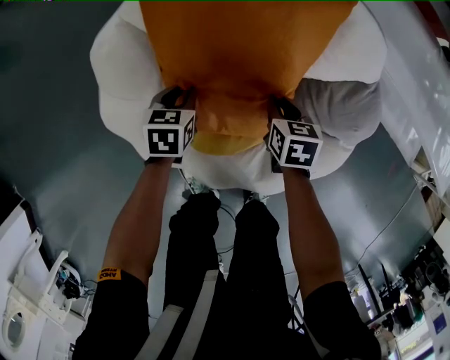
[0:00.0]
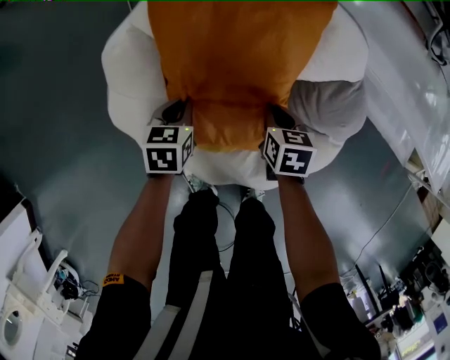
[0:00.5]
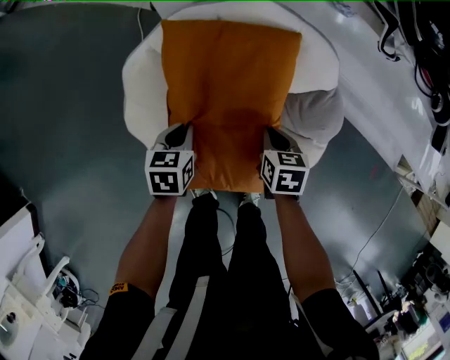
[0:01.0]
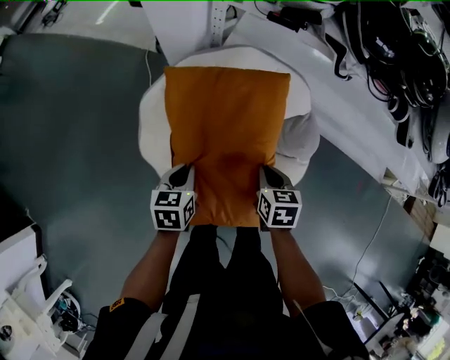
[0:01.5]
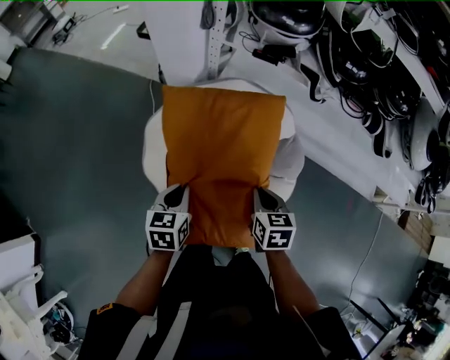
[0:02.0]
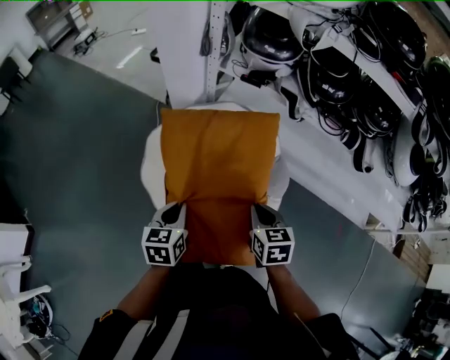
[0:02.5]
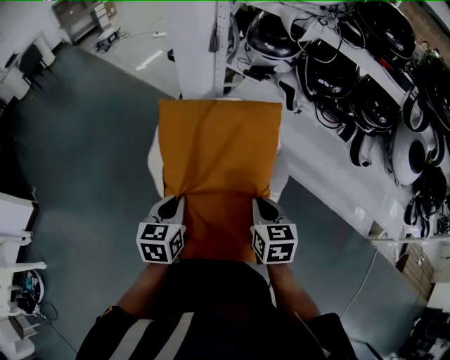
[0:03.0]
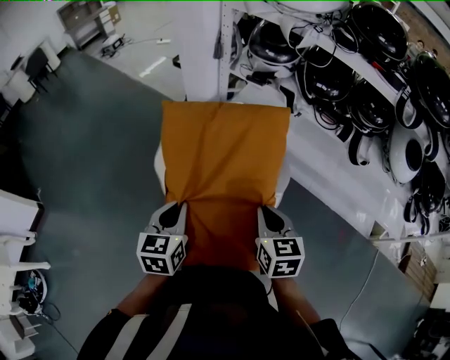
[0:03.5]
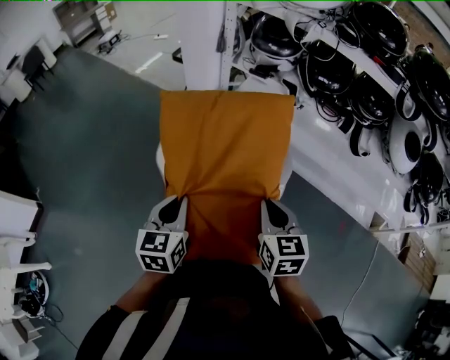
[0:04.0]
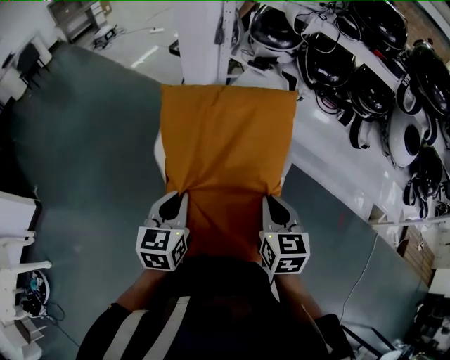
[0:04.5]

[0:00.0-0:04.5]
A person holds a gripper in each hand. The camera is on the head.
0.0 to 2.0 s: The grippers both shift upward by some 40 cm.
2.0 to 4.5 s: Both grippers travel together backward and upward, roughly 30 cm. The right gripper changes its angle by some 20 degrees.

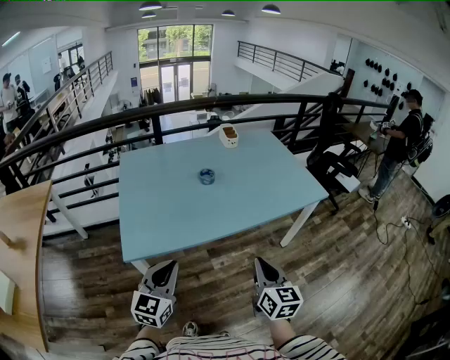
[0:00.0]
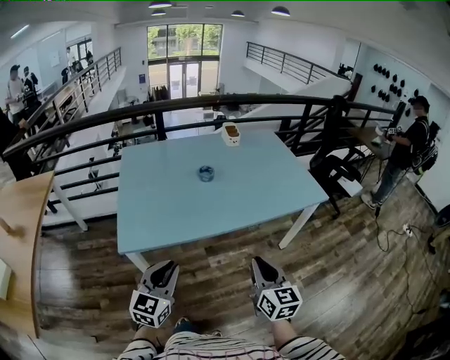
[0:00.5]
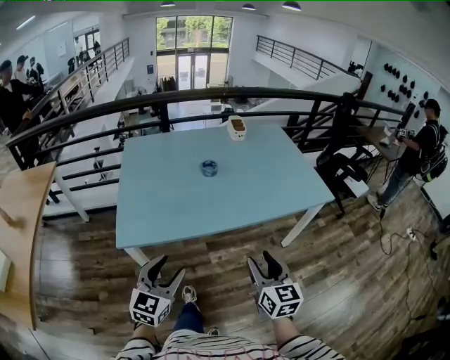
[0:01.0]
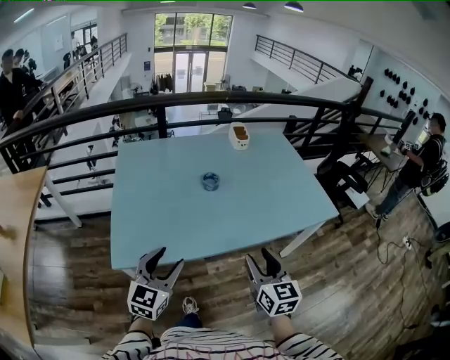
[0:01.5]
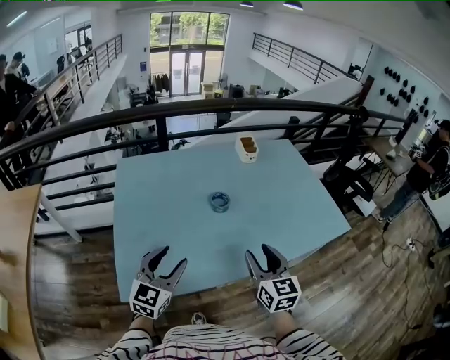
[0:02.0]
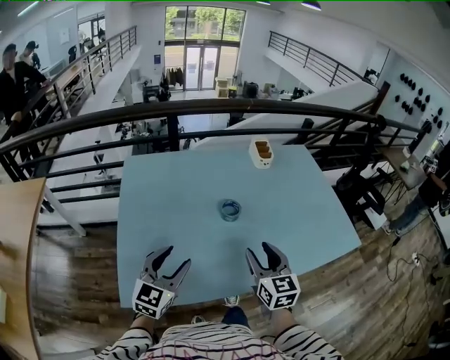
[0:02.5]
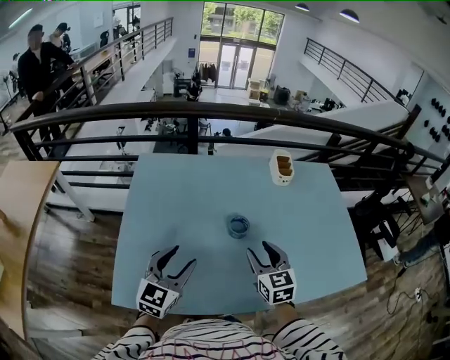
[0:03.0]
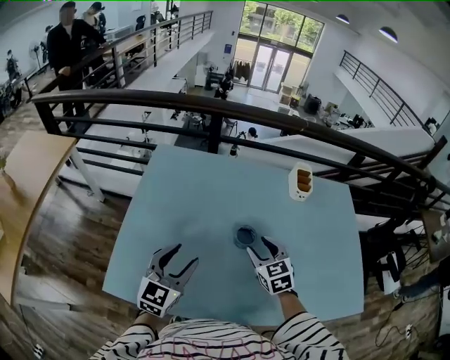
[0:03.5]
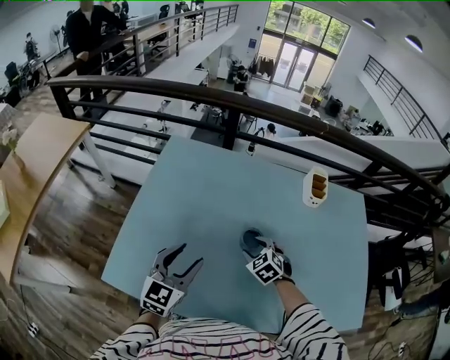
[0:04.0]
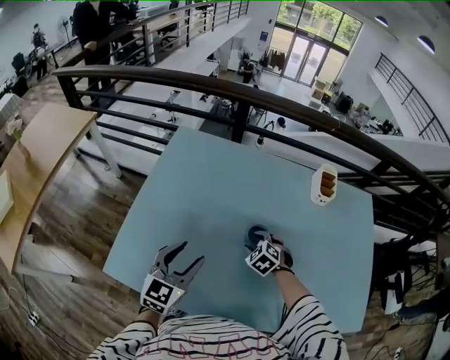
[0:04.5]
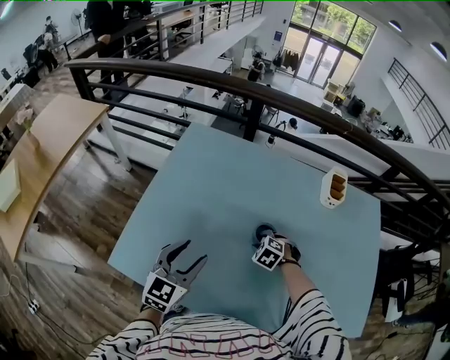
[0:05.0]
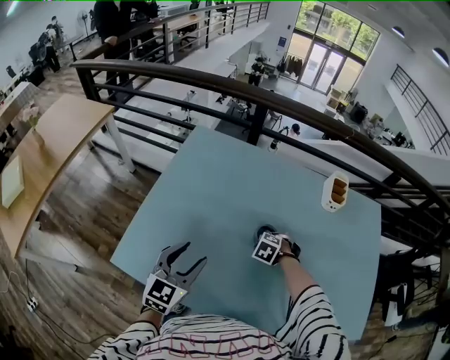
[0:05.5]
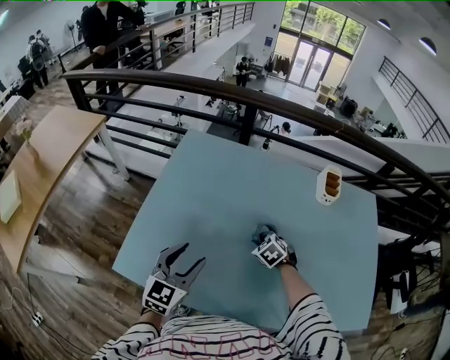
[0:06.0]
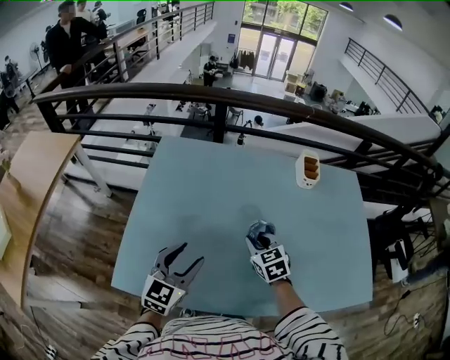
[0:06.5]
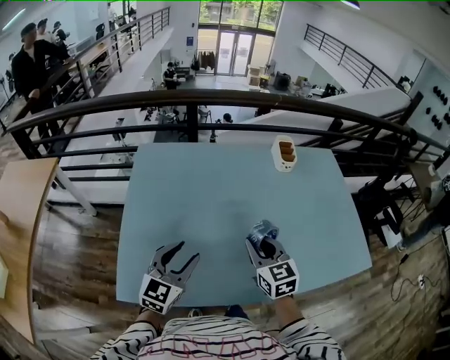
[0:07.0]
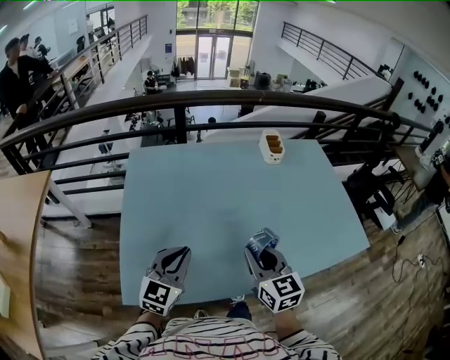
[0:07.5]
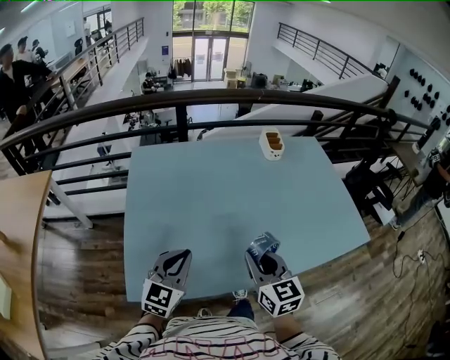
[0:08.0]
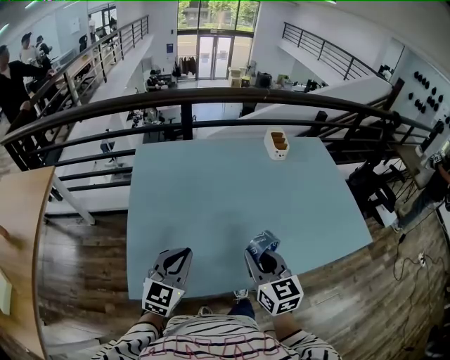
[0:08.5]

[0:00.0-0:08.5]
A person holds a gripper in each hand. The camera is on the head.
0.0 to 2.0 s: The two grippers go roughly 25 cm forward. The left gripper opens its fingers. Meanwhile the right gripper opens up.
2.0 to 4.0 s: The right gripper changes place by approximately 35 cm, and angles its fingers downward, by approximately 40 degrees, while the left gripper ends up about 15 cm from where it was, and swivels about 20 degrees.
4.0 to 6.5 s: The right gripper goes about 5 cm upward, swivels some 30 degrees, and closes up.
6.5 to 8.5 s: The left gripper moves backward, some 10 cm, and closes. The right gripper travels backward and upward by some 20 cm, and rotates about 30 degrees.

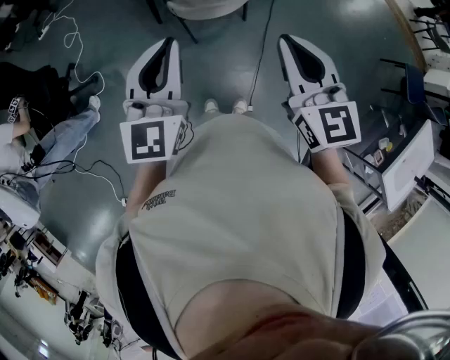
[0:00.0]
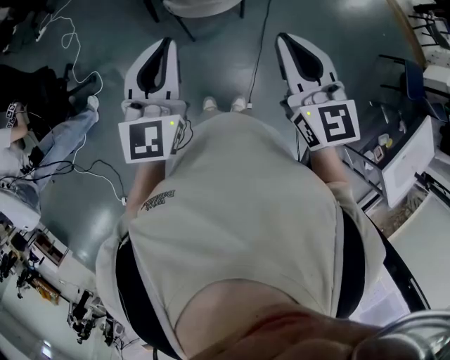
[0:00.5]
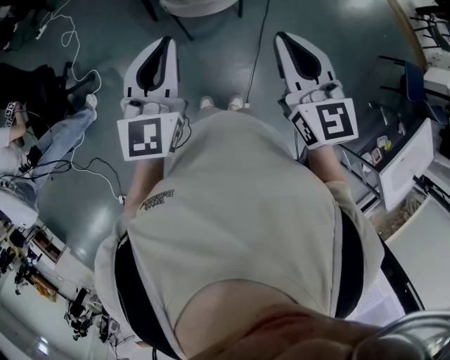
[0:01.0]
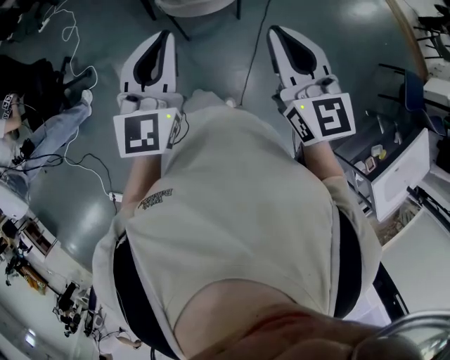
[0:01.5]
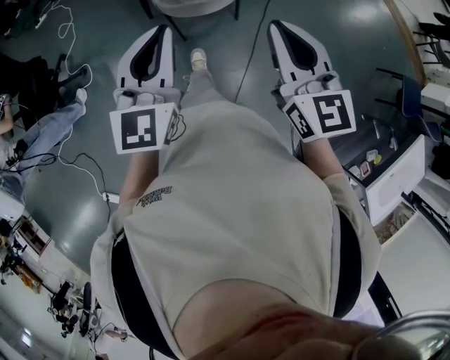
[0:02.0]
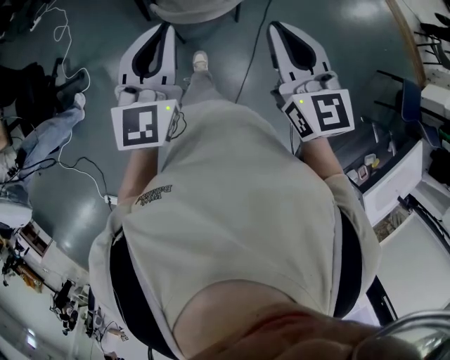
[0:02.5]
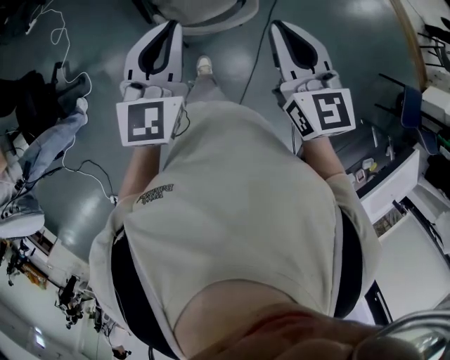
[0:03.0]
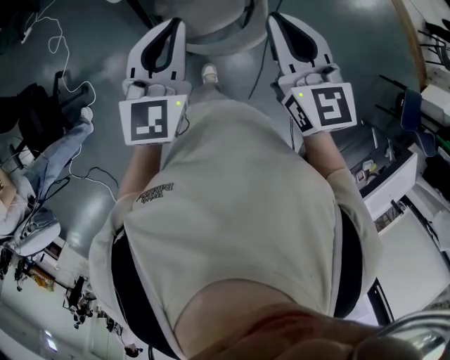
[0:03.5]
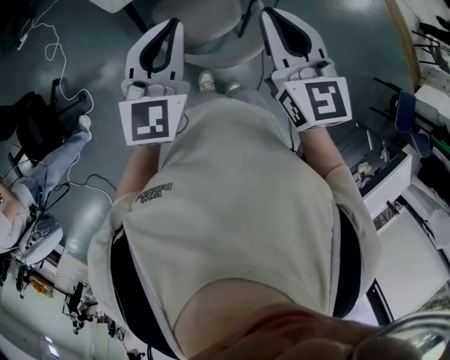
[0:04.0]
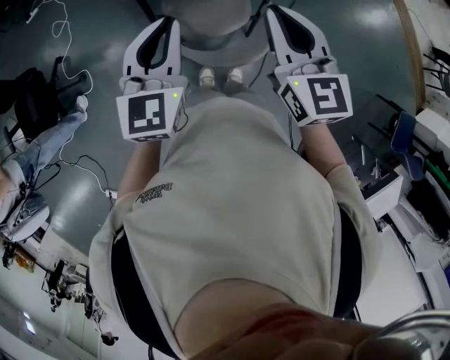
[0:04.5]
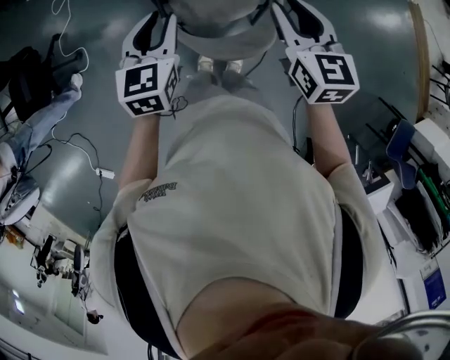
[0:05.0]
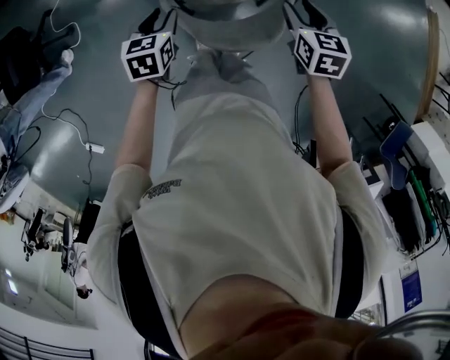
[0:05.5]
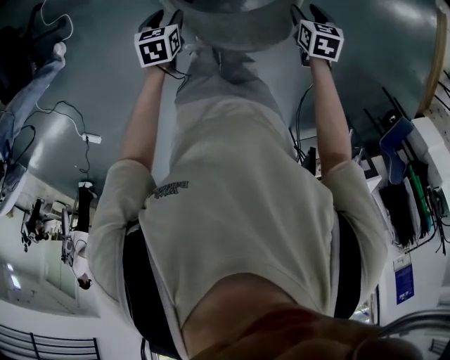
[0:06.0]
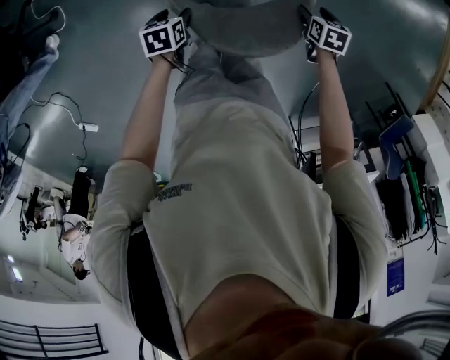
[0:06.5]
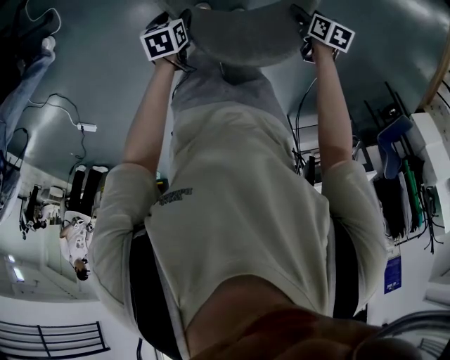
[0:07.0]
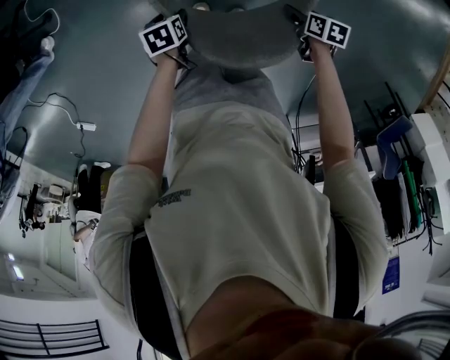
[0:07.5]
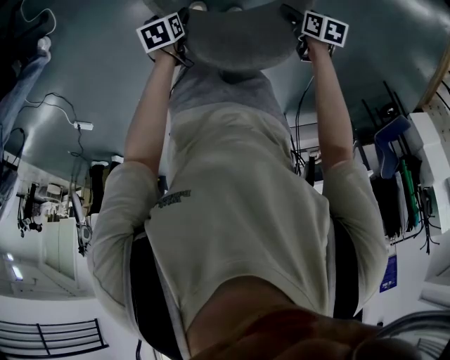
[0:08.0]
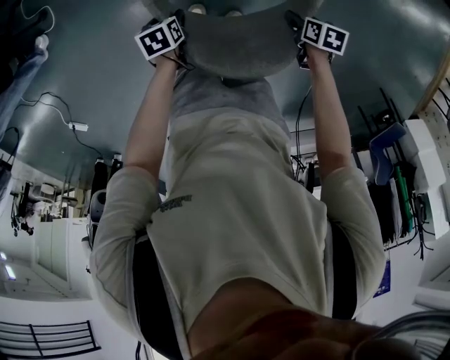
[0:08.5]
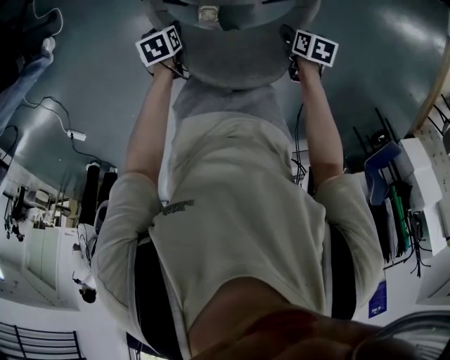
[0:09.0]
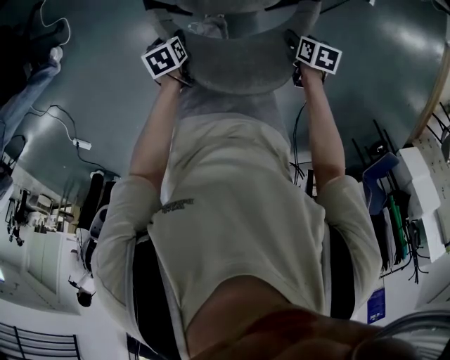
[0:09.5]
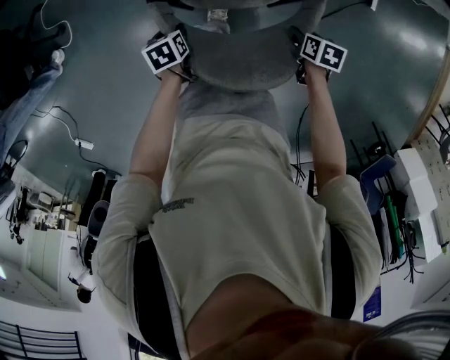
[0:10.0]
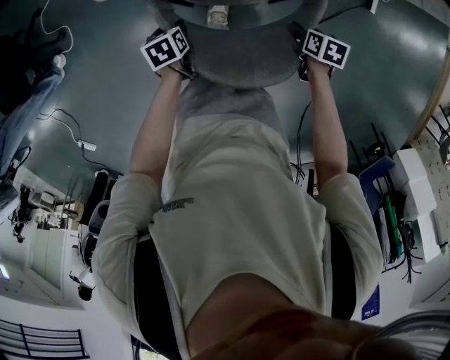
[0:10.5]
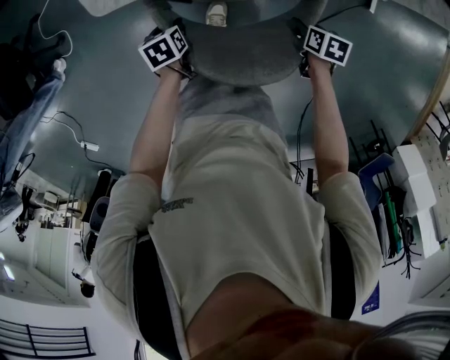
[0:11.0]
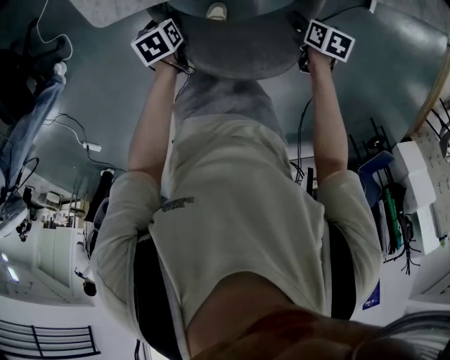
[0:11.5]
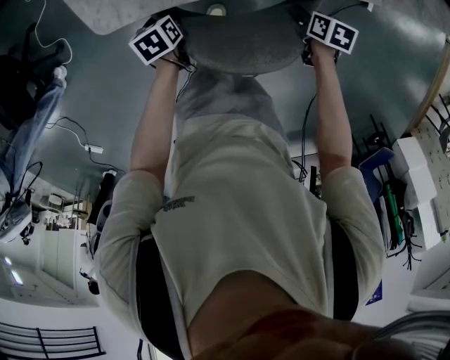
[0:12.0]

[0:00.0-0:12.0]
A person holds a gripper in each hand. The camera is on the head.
0.0 to 2.0 s: Both grippers move to the right, about 10 cm.
2.0 to 4.0 s: The grippers both shift forward by about 35 cm.
4.0 to 6.0 s: The grippers both shift downward by some 40 cm. The right gripper angles its fingers downward, by about 50 degrees, and opens. Meanwhile the left gripper points its fingers approximately 50 degrees further downward, and opens its fingers.
6.0 to 8.0 s: Both grippers move downward, approximately 15 cm. The right gripper turns by some 30 degrees. Meanwhile the left gripper swivels roughly 20 degrees, and opens.
8.0 to 10.0 s: The left gripper changes place by approximately 15 cm, and closes up. The right gripper shifts by some 15 cm.
10.0 to 12.0 s: Both grippers move forward, about 15 cm.

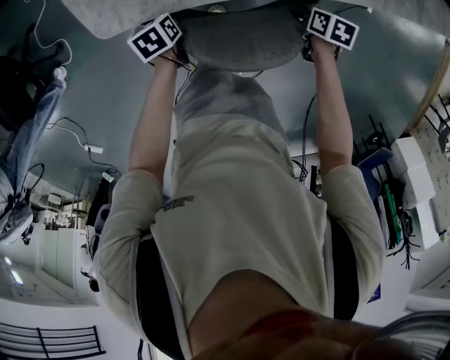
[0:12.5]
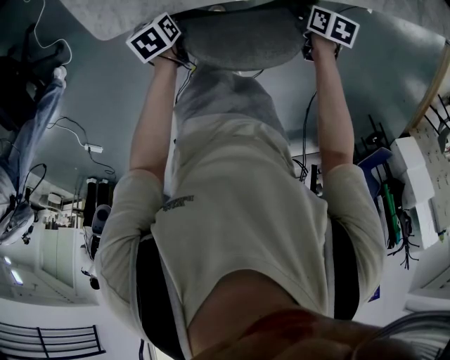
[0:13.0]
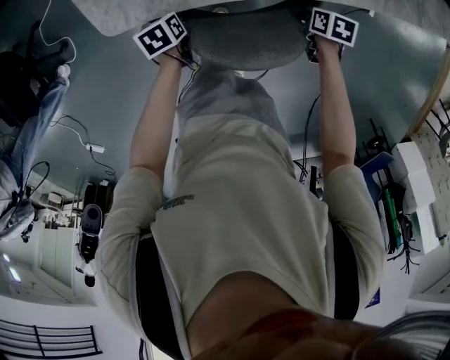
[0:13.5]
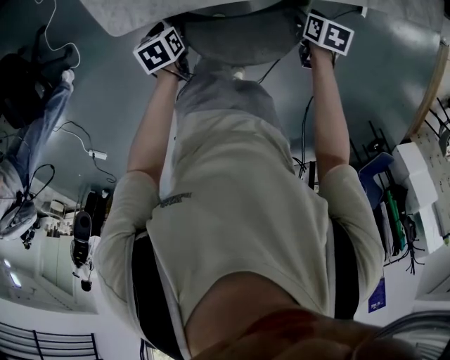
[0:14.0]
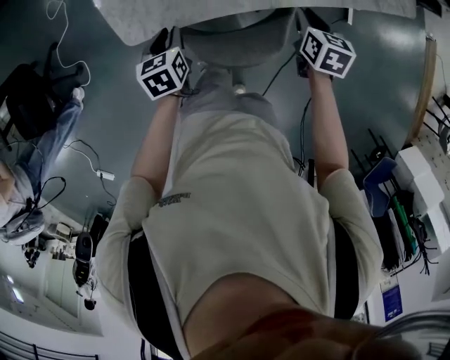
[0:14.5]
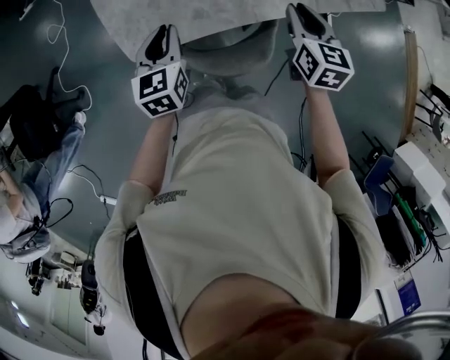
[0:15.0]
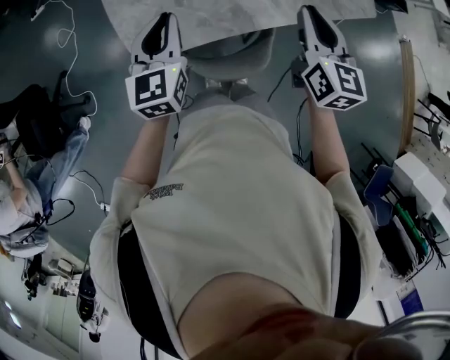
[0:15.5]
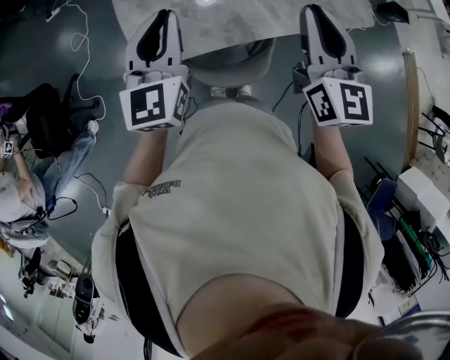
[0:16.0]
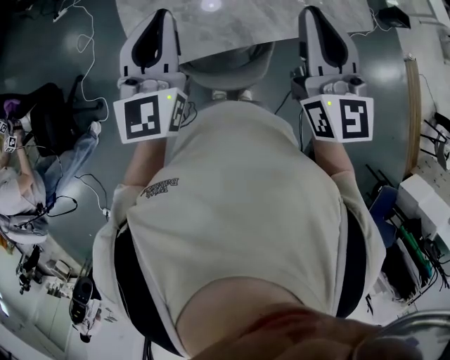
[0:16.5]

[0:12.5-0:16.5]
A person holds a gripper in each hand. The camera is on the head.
12.5 to 14.5 s: Both grippers travel together upward, about 20 cm. The right gripper swivels some 30 degrees, and closes its fingers. Meanwhile the left gripper rotates about 20 degrees.
14.5 to 16.5 s: The two grippers go about 40 cm upward. The right gripper tilts its fingers approximately 50 degrees upward. Meanwhile the left gripper angles its fingers upward, by roughly 50 degrees.
